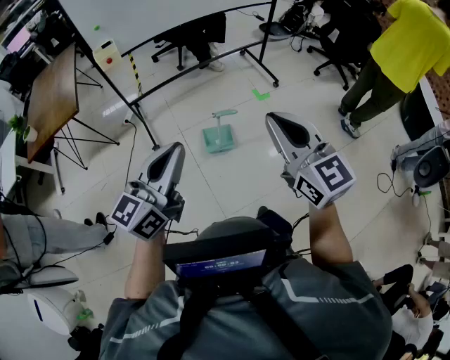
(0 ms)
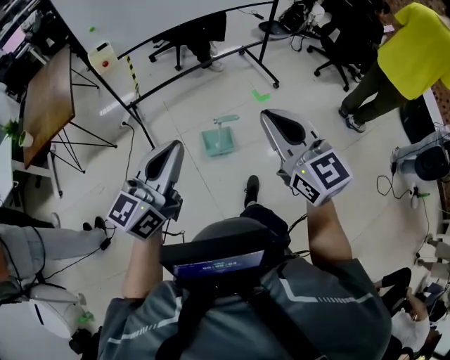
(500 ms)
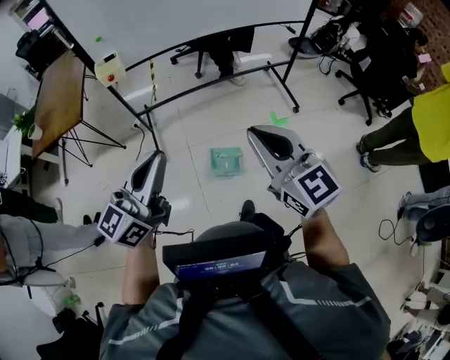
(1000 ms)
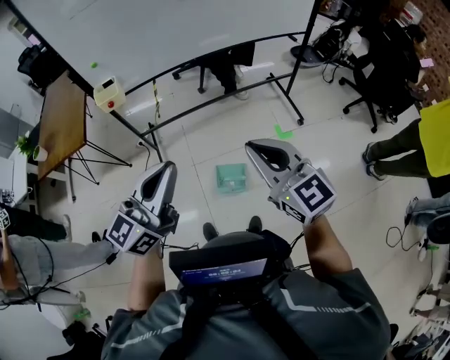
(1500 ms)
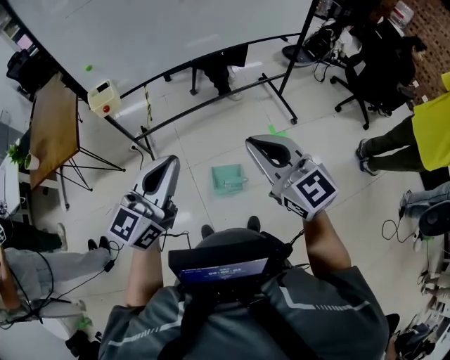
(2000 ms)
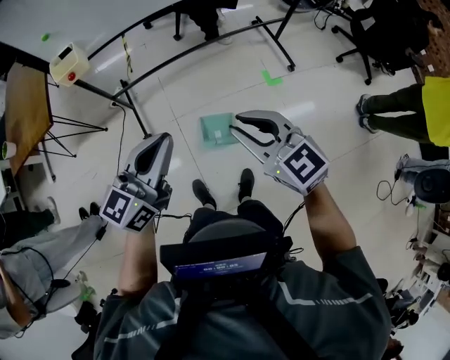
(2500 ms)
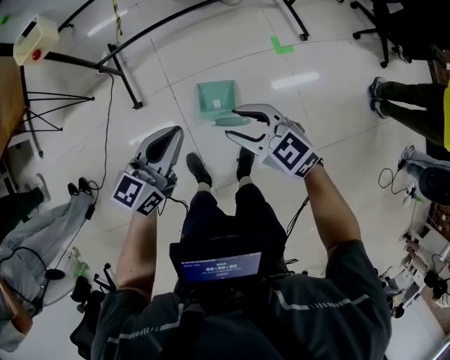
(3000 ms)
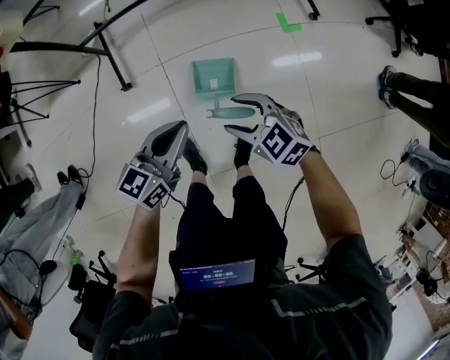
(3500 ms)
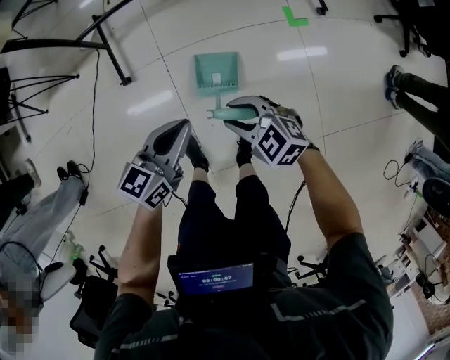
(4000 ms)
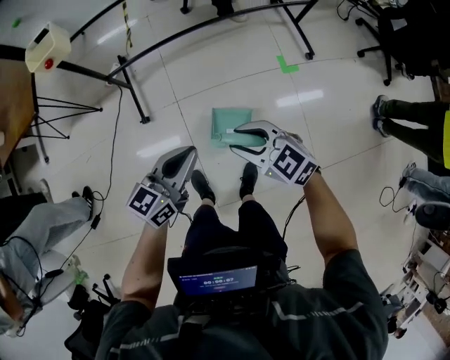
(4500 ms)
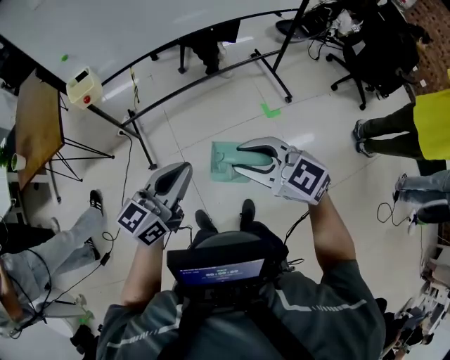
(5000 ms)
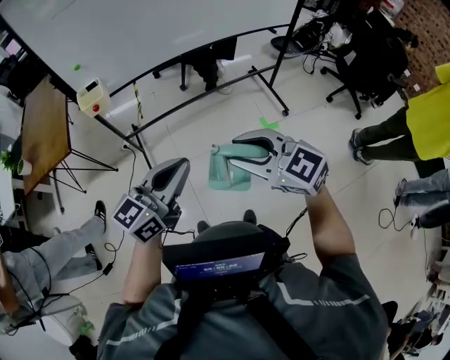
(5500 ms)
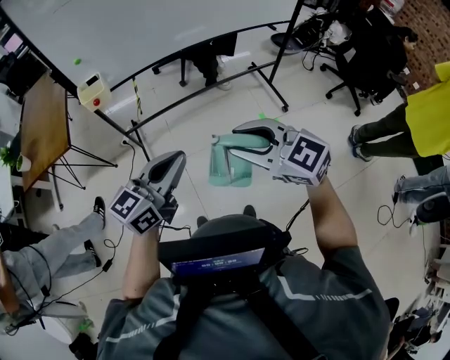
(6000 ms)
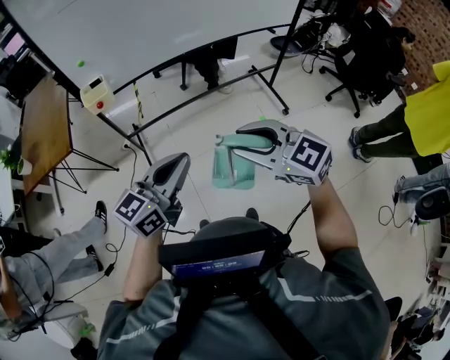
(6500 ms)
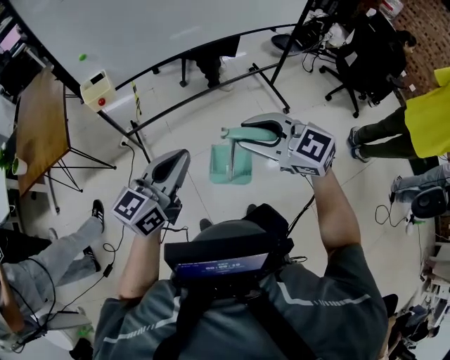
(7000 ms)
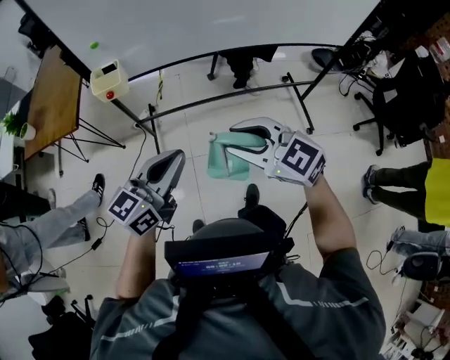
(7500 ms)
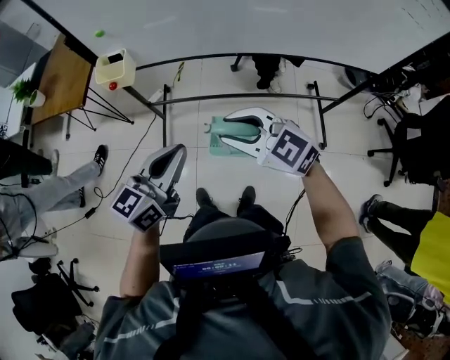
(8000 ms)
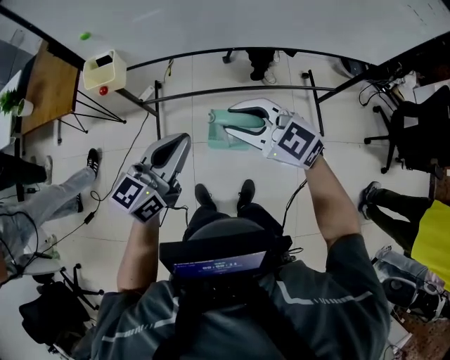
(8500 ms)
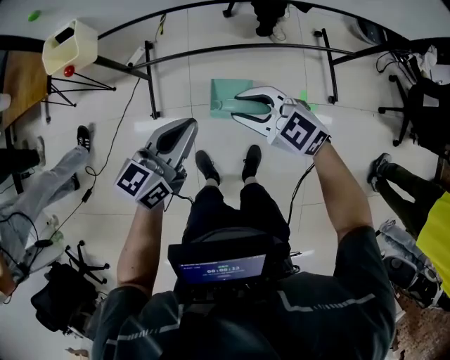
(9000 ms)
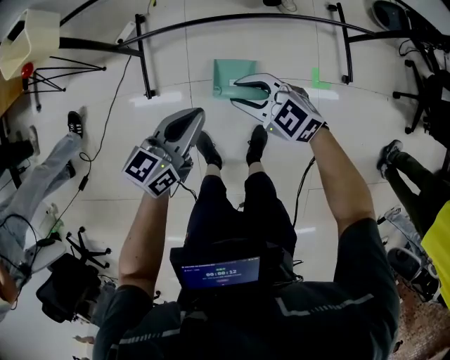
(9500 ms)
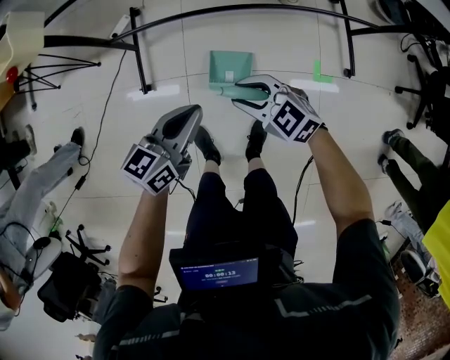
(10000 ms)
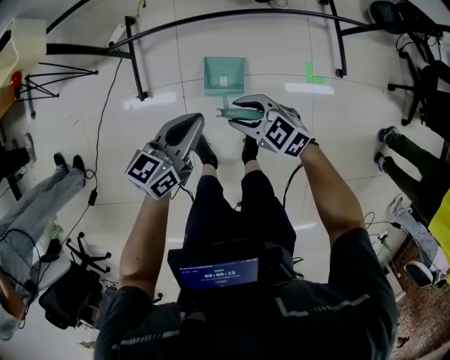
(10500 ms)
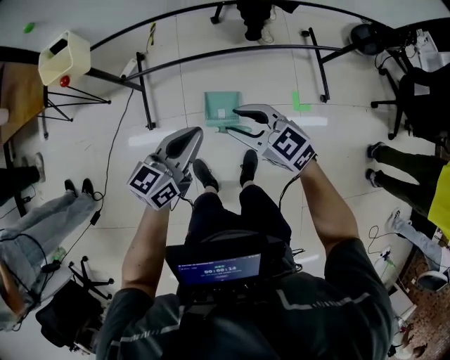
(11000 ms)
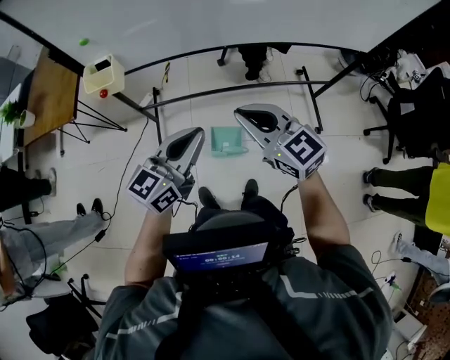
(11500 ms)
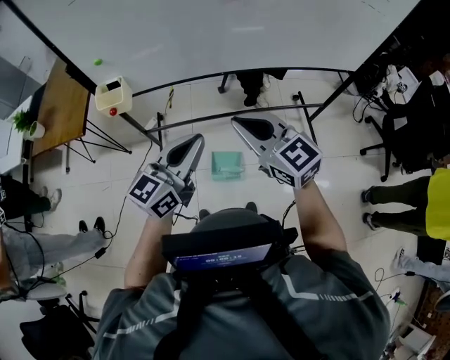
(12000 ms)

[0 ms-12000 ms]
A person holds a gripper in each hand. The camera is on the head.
0 ms to 2000 ms: Both grippers move forward, some 40 cm.
2000 ms to 4000 ms: Both grippers move downward, about 60 cm. The right gripper angles its fingers downward, by roughly 40 degrees, and opens up. Meanwhile the left gripper turns by roughly 30 degrees.
4000 ms to 6000 ms: Both grippers travel together upward, about 50 cm. The left gripper turns by some 20 degrees, while the right gripper rotates some 30 degrees.
6000 ms to 8000 ms: The right gripper shifts by about 35 cm, and rotates some 30 degrees. The left gripper changes place by about 30 cm, and swivels roughly 30 degrees.
8000 ms to 10000 ms: Both grippers travel together downward, some 50 cm.
10000 ms to 12000 ms: The two grippers go approximately 50 cm upward. The left gripper turns by about 30 degrees. Meanwhile the right gripper changes its angle by roughly 40 degrees, and closes its fingers.

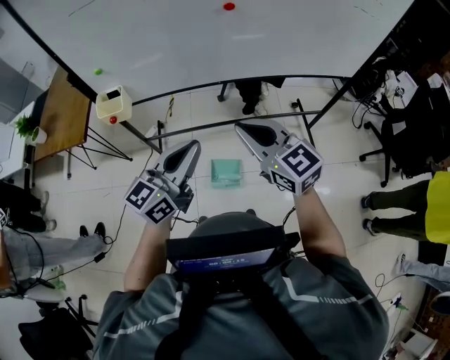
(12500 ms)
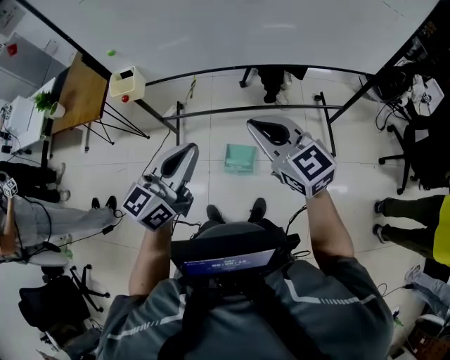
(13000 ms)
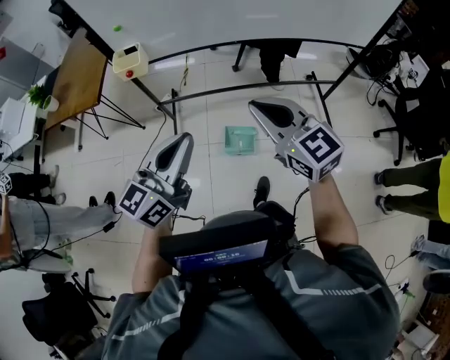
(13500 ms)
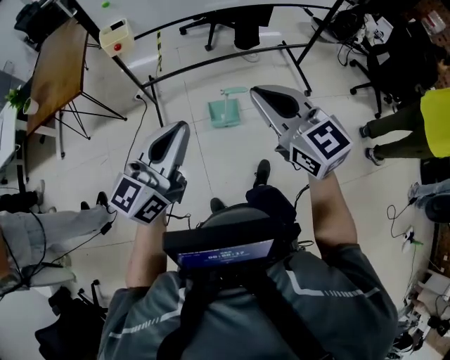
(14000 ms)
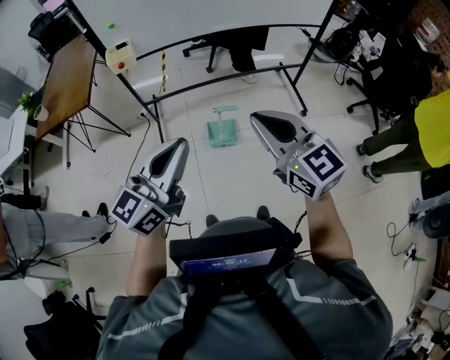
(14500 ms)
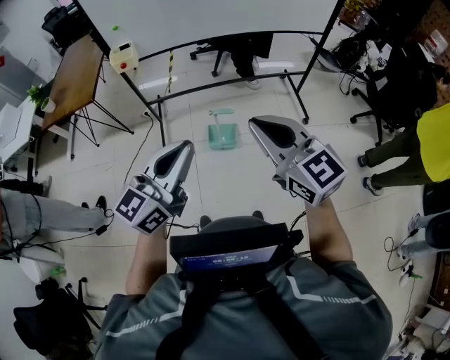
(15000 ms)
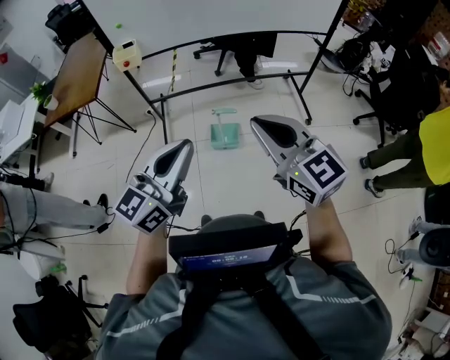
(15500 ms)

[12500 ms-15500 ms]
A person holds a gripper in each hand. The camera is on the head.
12500 ms to 14000 ms: Both grippers travel together backward and to the left, some 40 cm.
14000 ms to 15500 ms: Both grippers move to the right and backward, some 20 cm.

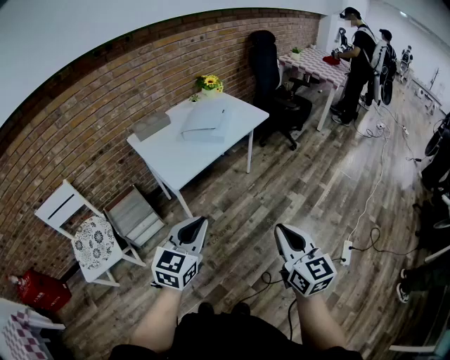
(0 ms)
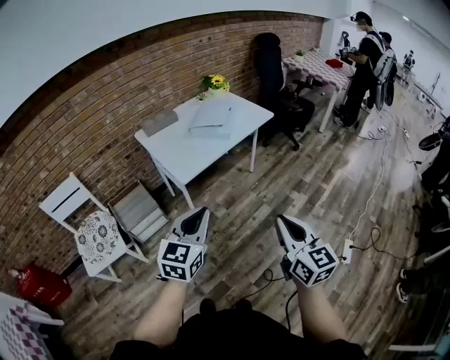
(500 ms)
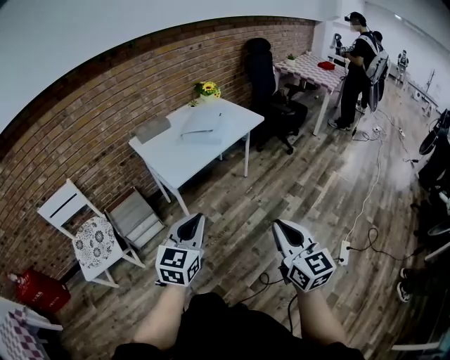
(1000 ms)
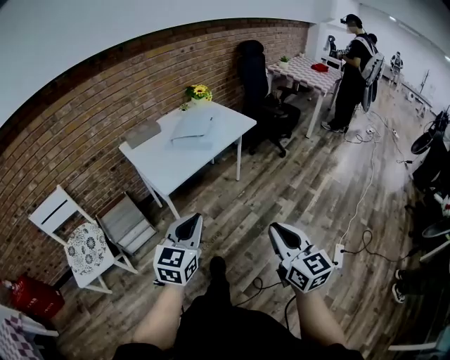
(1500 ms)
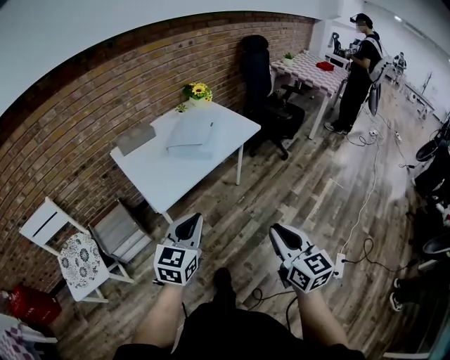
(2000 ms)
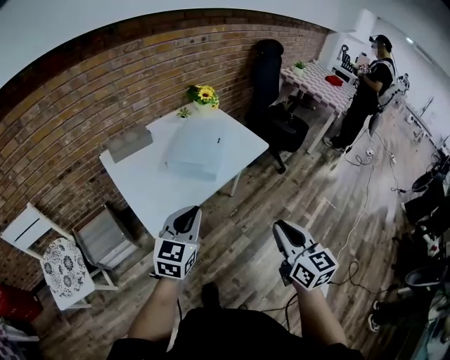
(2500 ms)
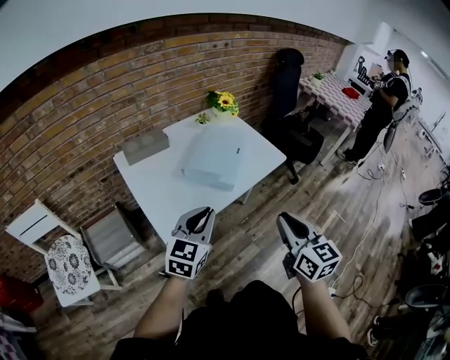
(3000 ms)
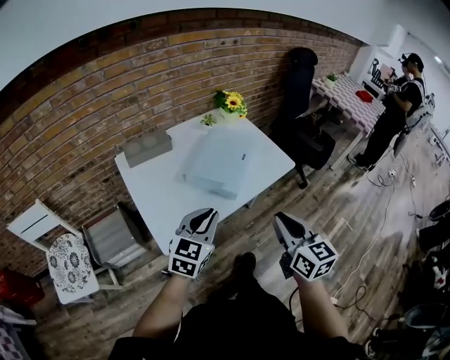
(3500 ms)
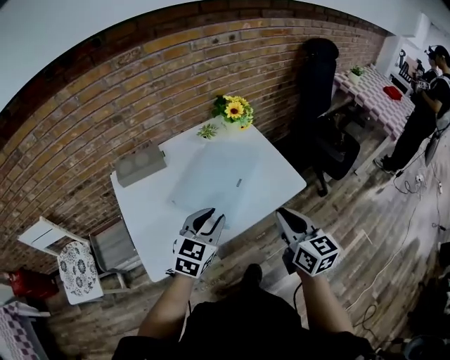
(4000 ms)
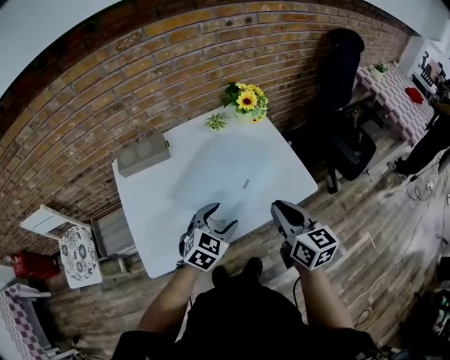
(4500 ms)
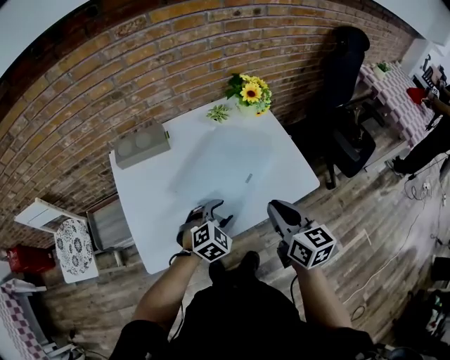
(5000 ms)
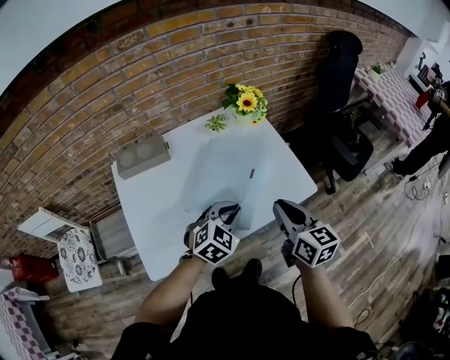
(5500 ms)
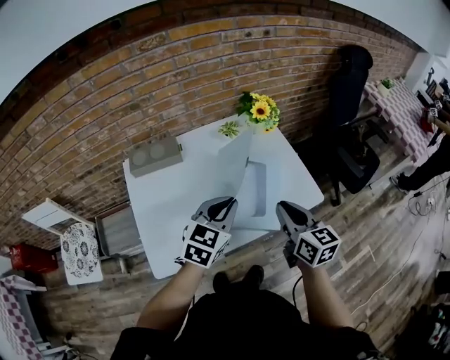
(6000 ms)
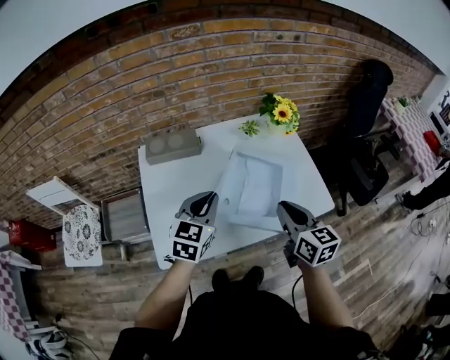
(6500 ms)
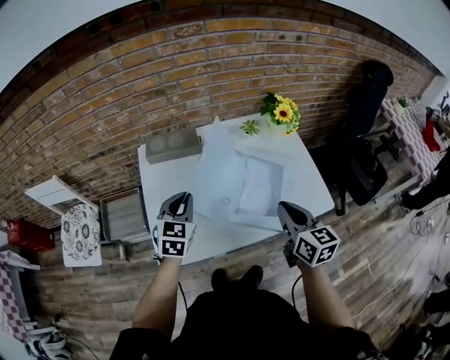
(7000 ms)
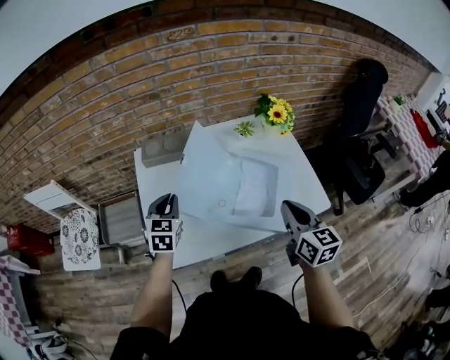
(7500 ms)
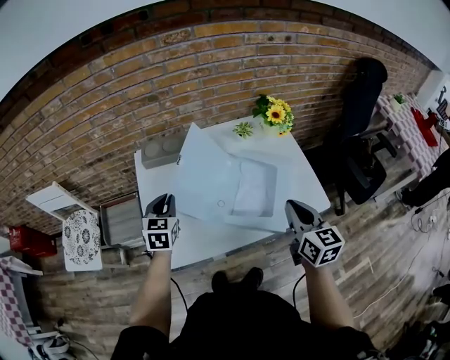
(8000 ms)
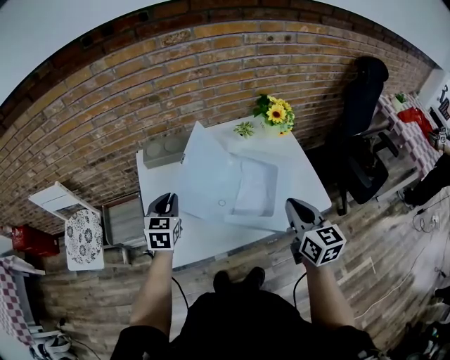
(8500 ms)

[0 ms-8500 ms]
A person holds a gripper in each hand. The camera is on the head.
0 ms to 2000 ms: The grippers both shift forward by approximately 10 cm.
2000 ms to 4000 ms: The two grippers go about 40 cm forward.
4000 ms to 6500 ms: The right gripper travels forward and to the left by approximately 10 cm; the left gripper goes roughly 10 cm to the left and forward, goes downward and returns, approximately 15 cm each way, and opens and closes again.
6500 ms to 8500 ms: The left gripper shifts approximately 15 cm to the left and downward.

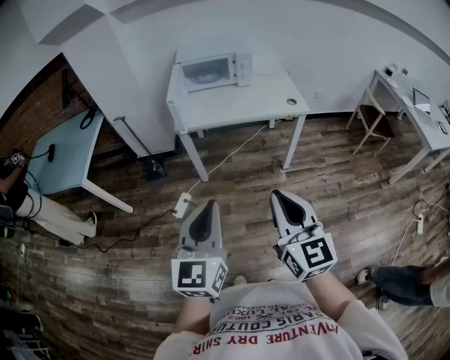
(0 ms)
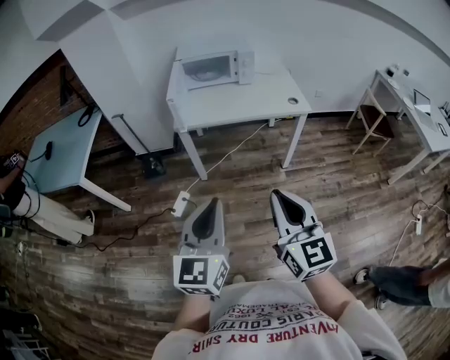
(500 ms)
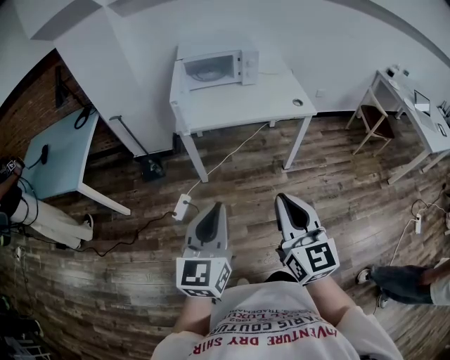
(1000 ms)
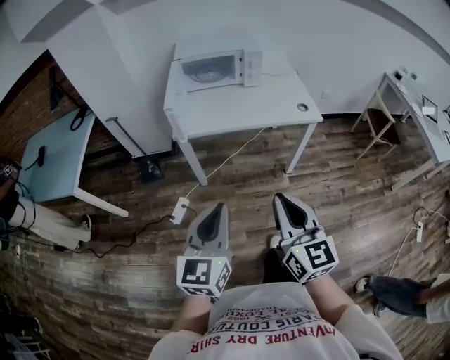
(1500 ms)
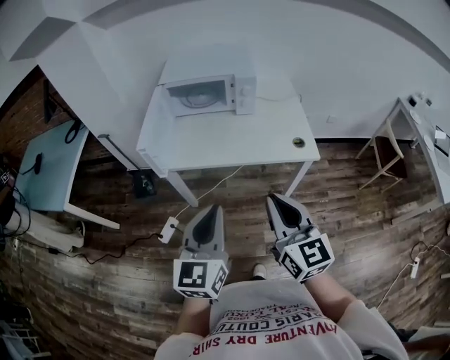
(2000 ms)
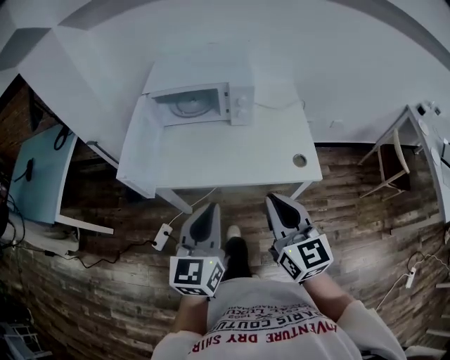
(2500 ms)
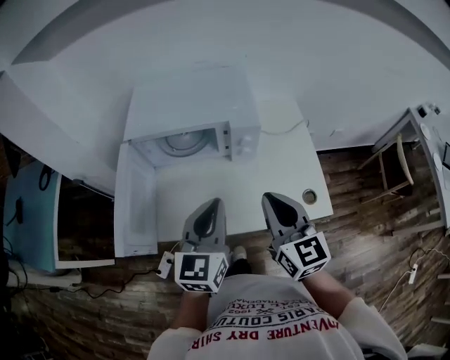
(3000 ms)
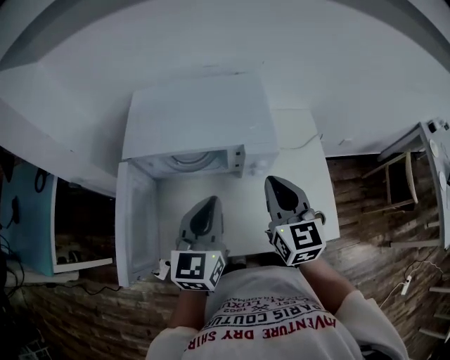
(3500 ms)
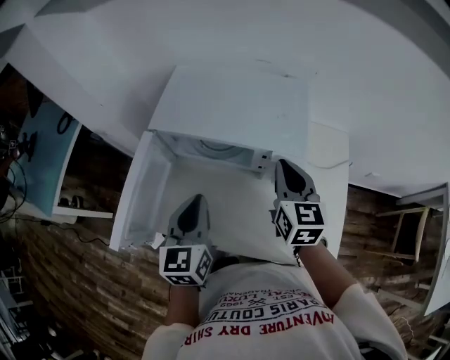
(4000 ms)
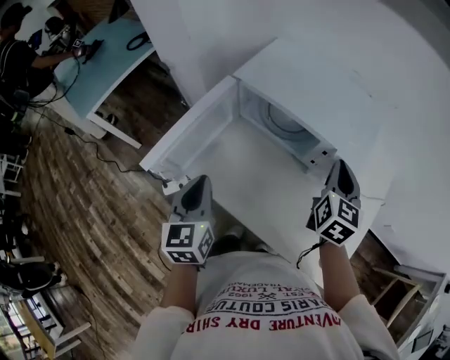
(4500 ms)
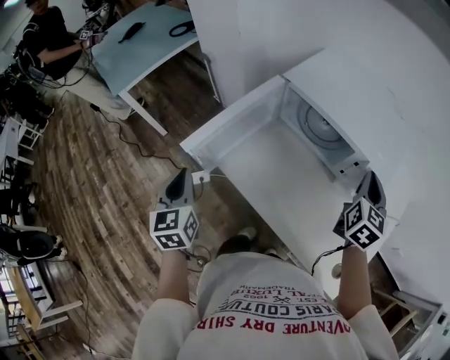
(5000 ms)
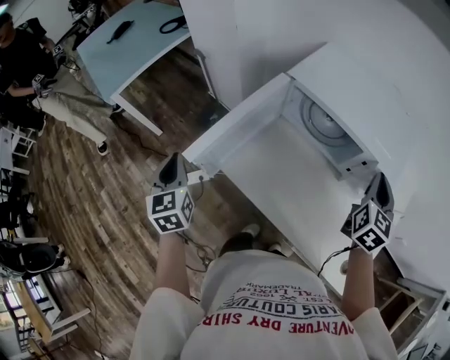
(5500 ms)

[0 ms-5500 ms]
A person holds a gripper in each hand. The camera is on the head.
0 ms to 2000 ms: The two grippers go about 30 cm forward.
2000 ms to 3500 ms: The two grippers travel together, forward, approximately 50 cm.
3500 ms to 5500 ms: The right gripper shifts by approximately 10 cm. Meanwhile the left gripper ends up some 40 cm from where it was, and swivels approximately 60 degrees.
